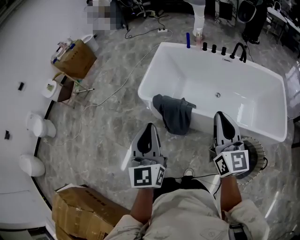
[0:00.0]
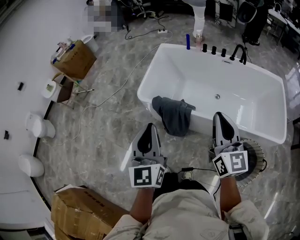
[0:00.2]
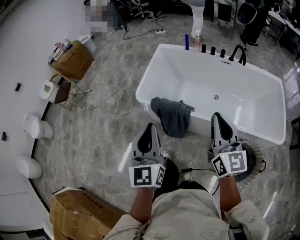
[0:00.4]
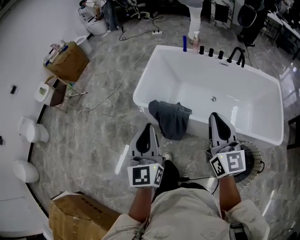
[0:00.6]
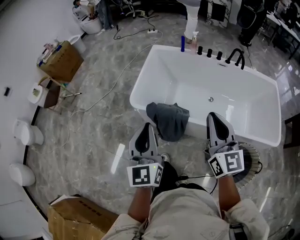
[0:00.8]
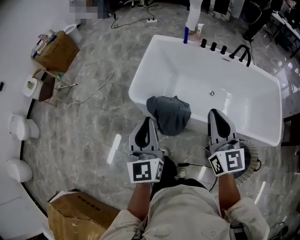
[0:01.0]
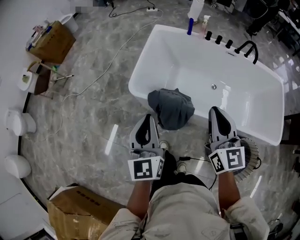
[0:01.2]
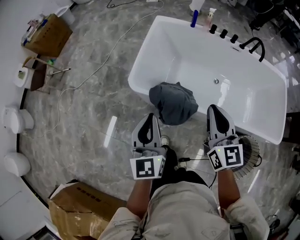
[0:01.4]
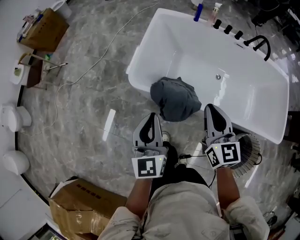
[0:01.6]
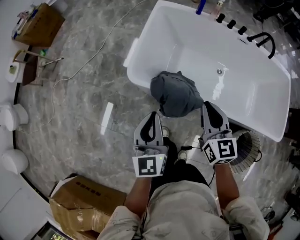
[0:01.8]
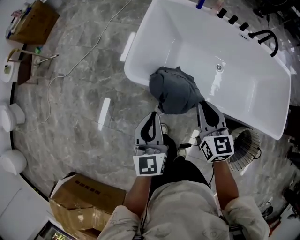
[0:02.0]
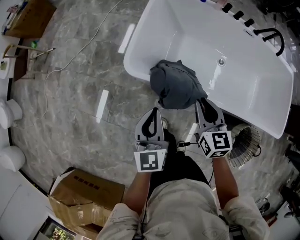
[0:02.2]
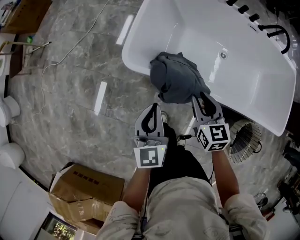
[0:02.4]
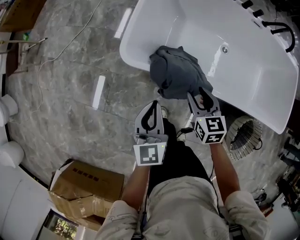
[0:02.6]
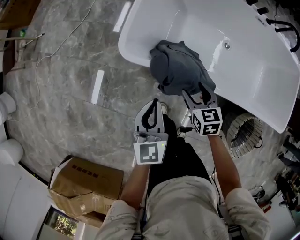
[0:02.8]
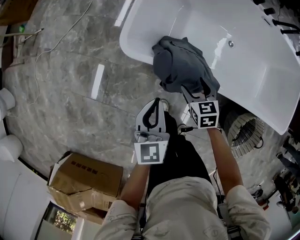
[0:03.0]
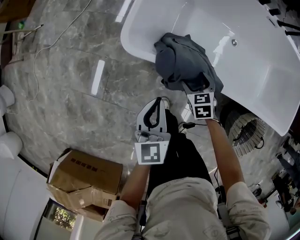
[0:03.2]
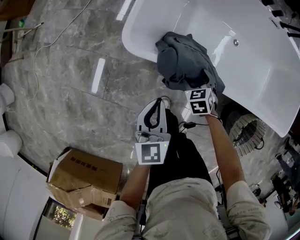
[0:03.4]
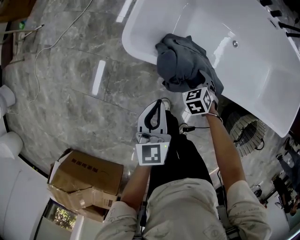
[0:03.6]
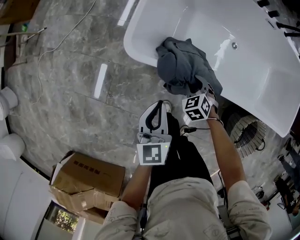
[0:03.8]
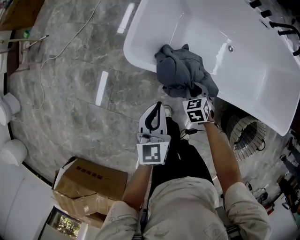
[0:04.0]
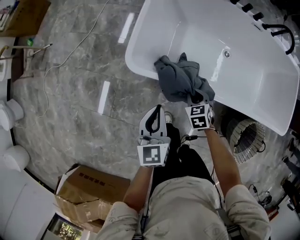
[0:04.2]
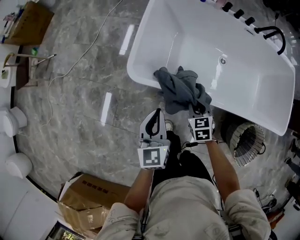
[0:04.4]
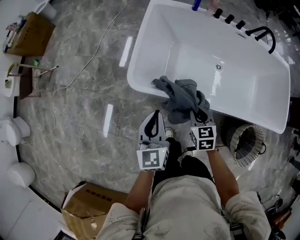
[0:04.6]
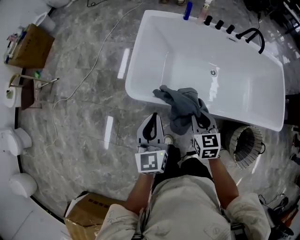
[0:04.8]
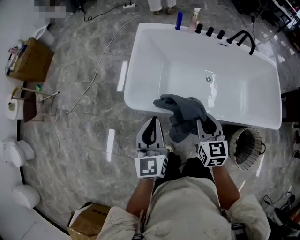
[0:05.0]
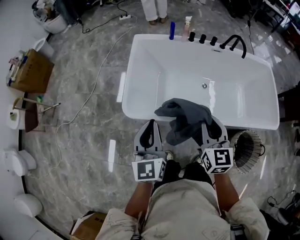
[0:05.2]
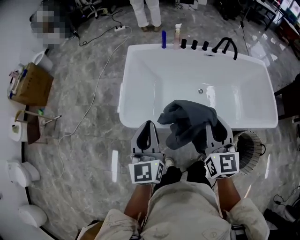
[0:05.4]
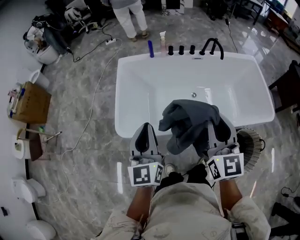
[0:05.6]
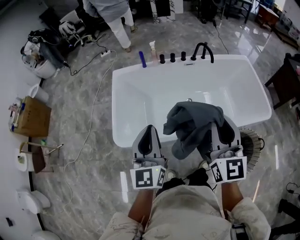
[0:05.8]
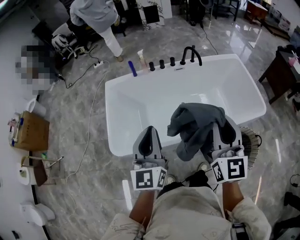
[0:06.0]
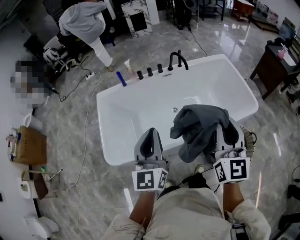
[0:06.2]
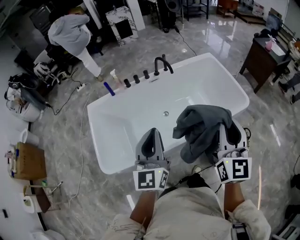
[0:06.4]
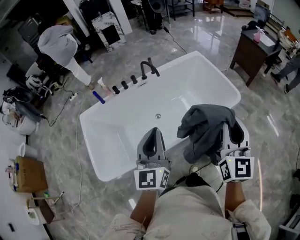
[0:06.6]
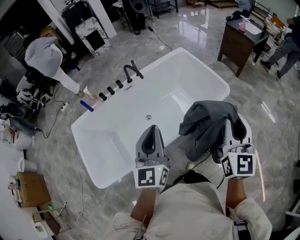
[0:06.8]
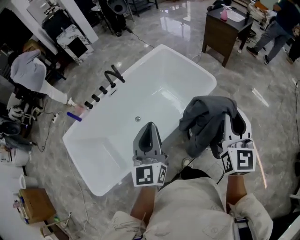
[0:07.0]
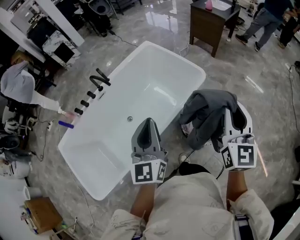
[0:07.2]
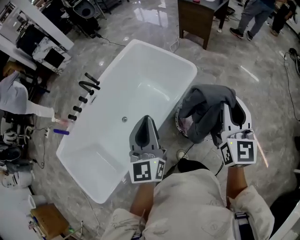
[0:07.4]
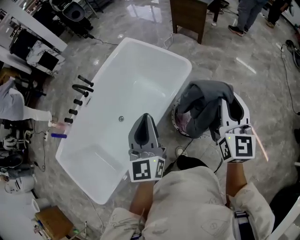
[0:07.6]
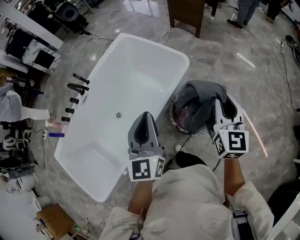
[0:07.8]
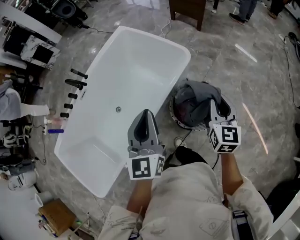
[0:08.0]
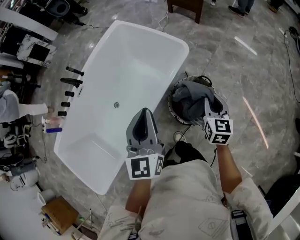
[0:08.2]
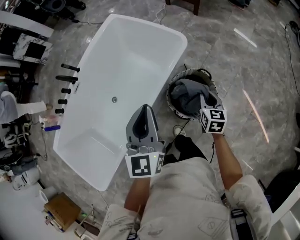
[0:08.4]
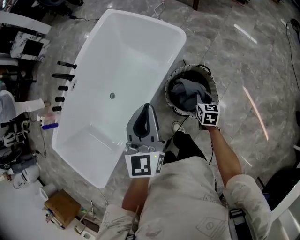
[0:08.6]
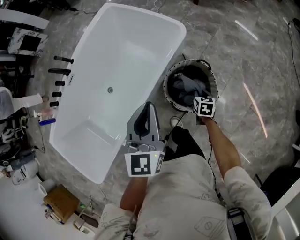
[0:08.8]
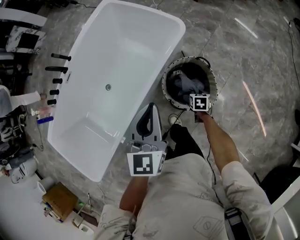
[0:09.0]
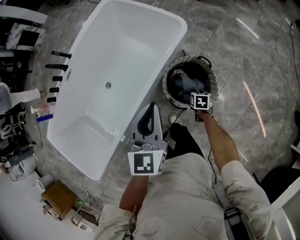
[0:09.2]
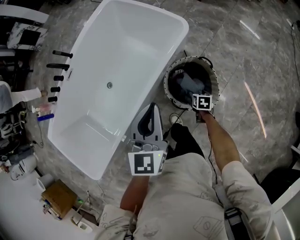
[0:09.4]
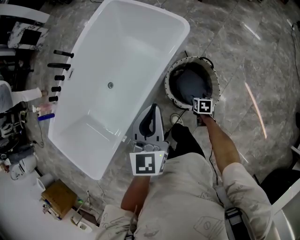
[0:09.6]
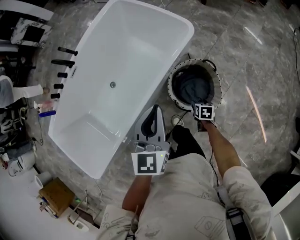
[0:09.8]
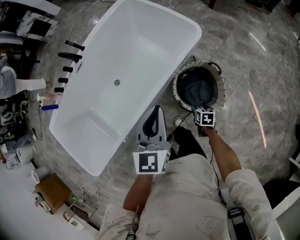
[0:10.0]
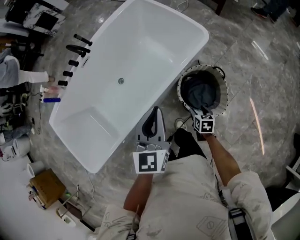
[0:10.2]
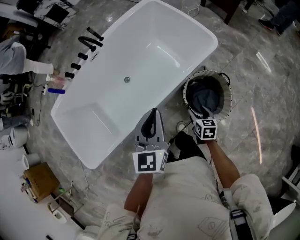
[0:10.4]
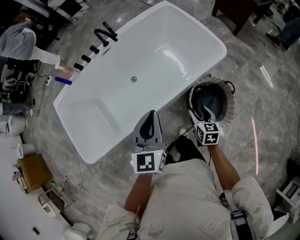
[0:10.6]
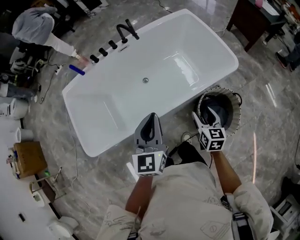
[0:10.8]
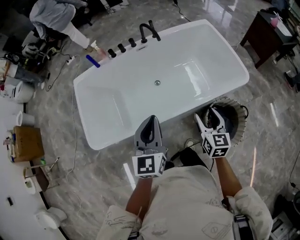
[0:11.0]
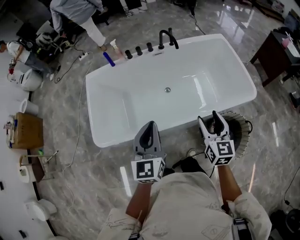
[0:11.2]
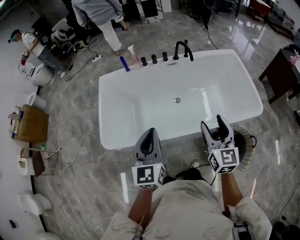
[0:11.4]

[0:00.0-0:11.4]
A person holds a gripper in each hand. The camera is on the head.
0:00.0 to 0:01.4: The left gripper shifts about 25 cm forward, downward and to the left, while the right gripper shifts roughly 25 cm forward, to the left and downward.
0:01.4 to 0:02.8: Both grippers travel together downward, roughly 30 cm. The right gripper angles its fingers downward, by about 40 degrees, and opens.
0:02.8 to 0:04.2: The right gripper closes up.
0:04.2 to 0:05.6: The right gripper goes roughly 50 cm upward, and tips its fingers upward by roughly 60 degrees; the left gripper is displaced upward and to the right by some 30 cm, and rotates about 30 degrees.
0:05.6 to 0:07.2: The pair of grippers is taken roughly 60 cm. The left gripper rotates some 50 degrees, while the right gripper changes its angle by some 50 degrees.
0:07.2 to 0:08.6: The right gripper is displaced downward by some 50 cm, and tilts its fingers roughly 50 degrees downward. Meanwhile the left gripper moves to the right, downward and forward, about 20 cm.
0:08.6 to 0:10.0: The left gripper moves some 5 cm. The right gripper shifts some 15 cm downward, backward and to the left, swivels some 20 degrees, and opens up.
0:10.0 to 0:11.4: The right gripper is displaced upward by some 50 cm, and points its fingers roughly 50 degrees further upward; the left gripper changes place by roughly 40 cm, and rotates approximately 40 degrees.

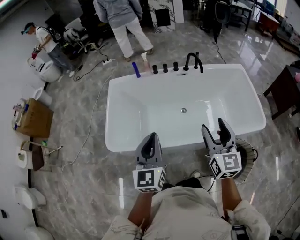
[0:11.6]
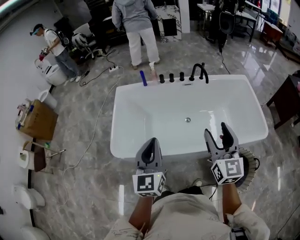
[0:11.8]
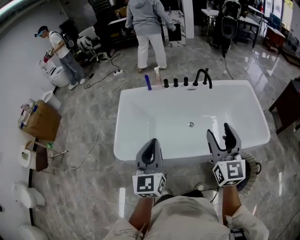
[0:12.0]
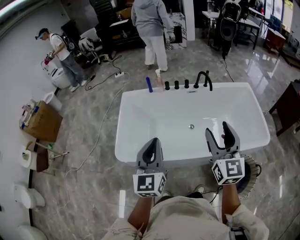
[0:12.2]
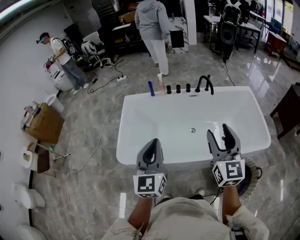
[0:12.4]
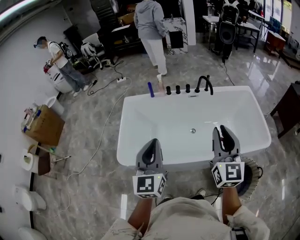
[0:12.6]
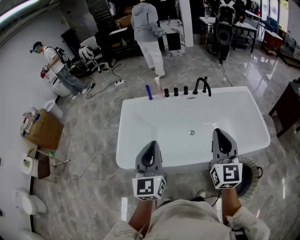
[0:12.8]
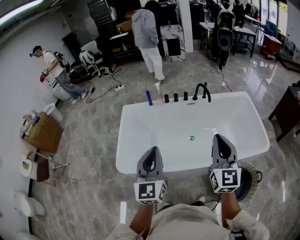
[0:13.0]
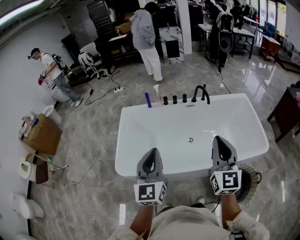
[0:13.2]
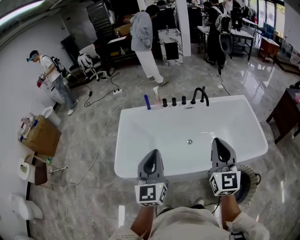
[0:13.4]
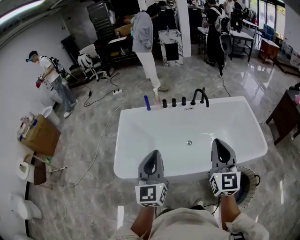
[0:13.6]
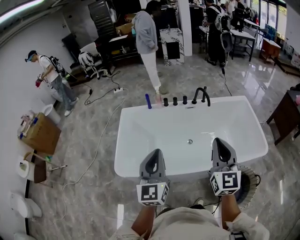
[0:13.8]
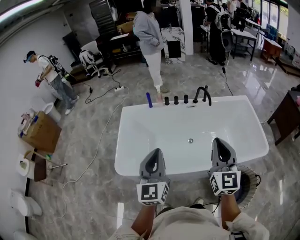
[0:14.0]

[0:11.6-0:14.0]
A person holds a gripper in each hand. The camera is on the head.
0:11.6 to 0:12.8: The grippers both shift upward by approximately 10 cm. The right gripper closes up.
0:12.8 to 0:14.0: The grippers move only a little.

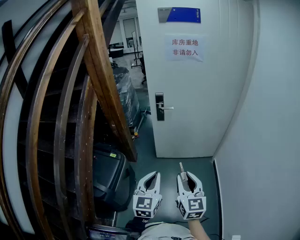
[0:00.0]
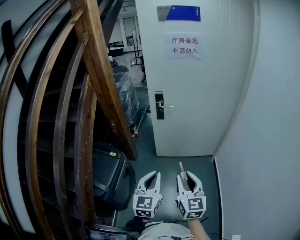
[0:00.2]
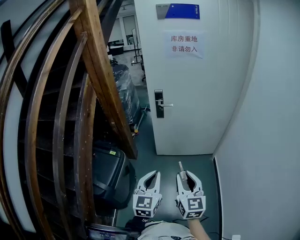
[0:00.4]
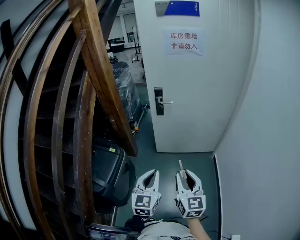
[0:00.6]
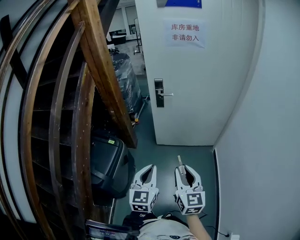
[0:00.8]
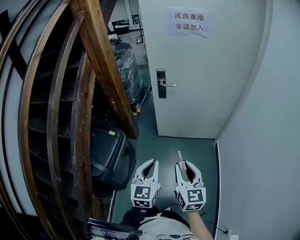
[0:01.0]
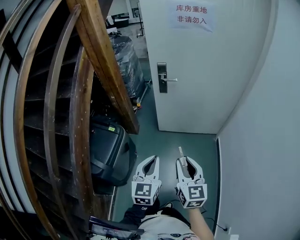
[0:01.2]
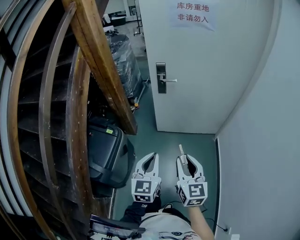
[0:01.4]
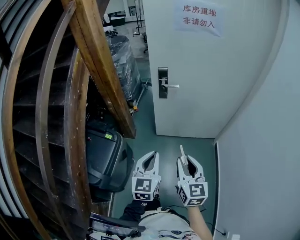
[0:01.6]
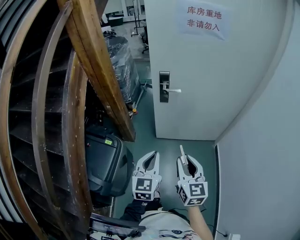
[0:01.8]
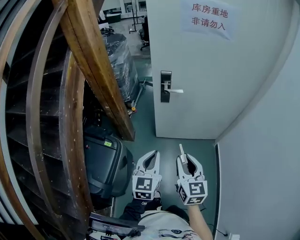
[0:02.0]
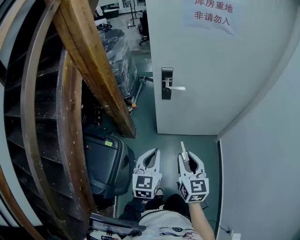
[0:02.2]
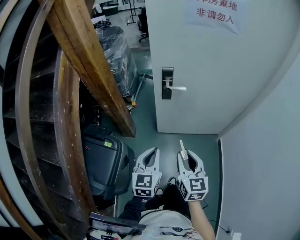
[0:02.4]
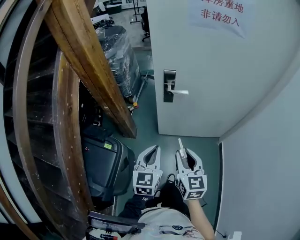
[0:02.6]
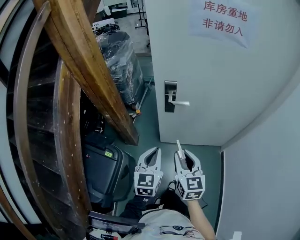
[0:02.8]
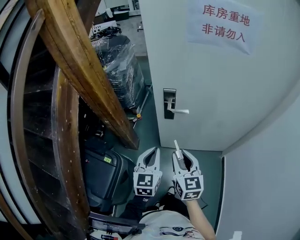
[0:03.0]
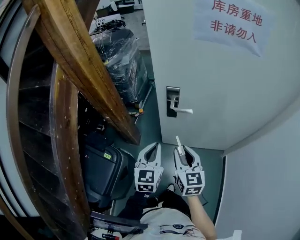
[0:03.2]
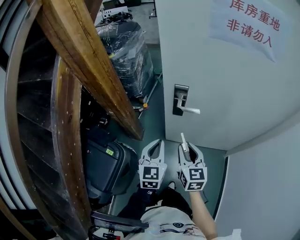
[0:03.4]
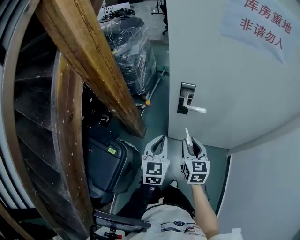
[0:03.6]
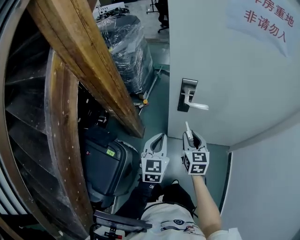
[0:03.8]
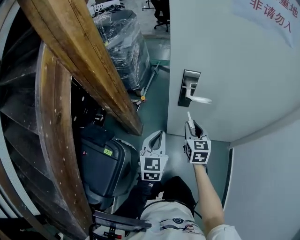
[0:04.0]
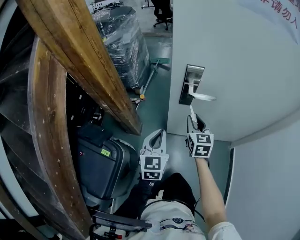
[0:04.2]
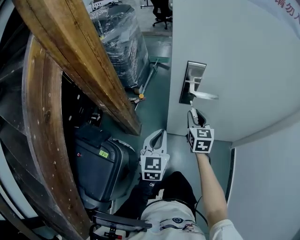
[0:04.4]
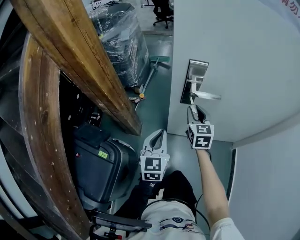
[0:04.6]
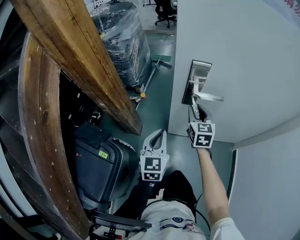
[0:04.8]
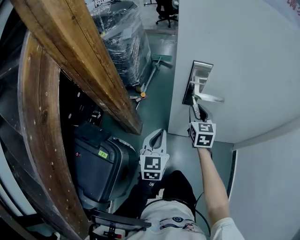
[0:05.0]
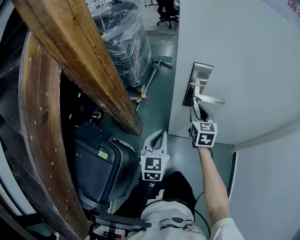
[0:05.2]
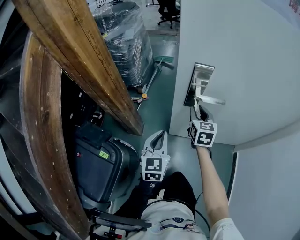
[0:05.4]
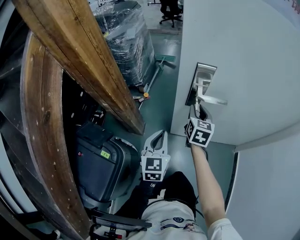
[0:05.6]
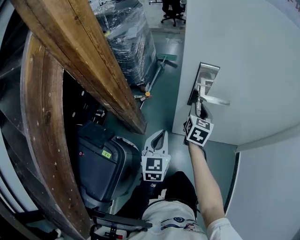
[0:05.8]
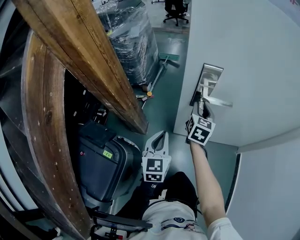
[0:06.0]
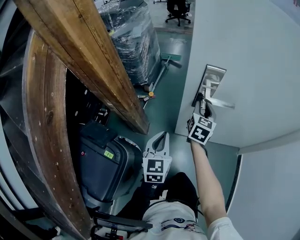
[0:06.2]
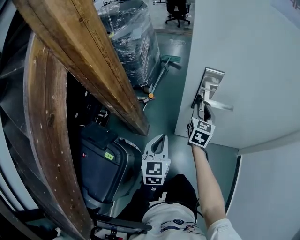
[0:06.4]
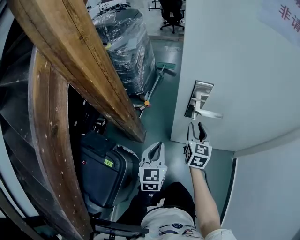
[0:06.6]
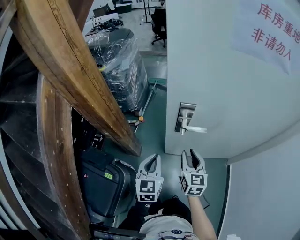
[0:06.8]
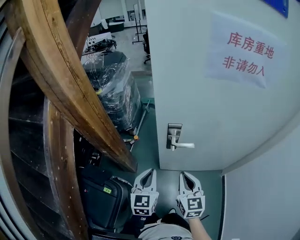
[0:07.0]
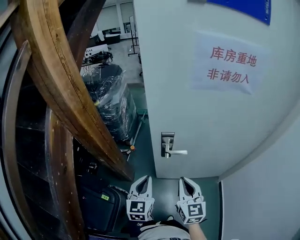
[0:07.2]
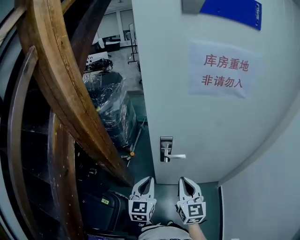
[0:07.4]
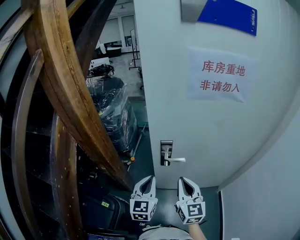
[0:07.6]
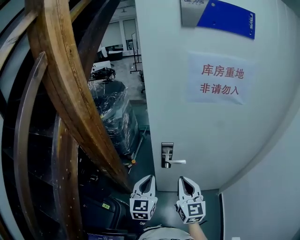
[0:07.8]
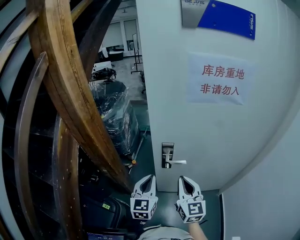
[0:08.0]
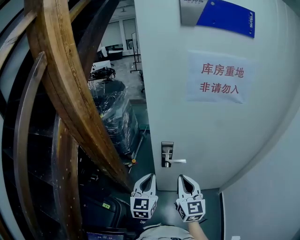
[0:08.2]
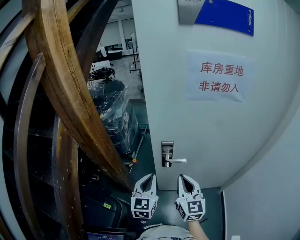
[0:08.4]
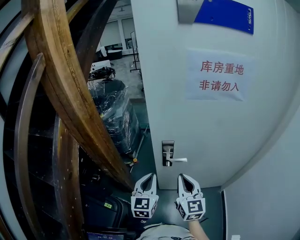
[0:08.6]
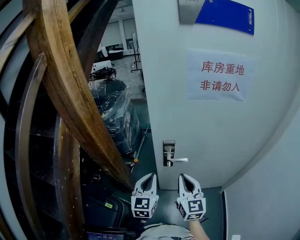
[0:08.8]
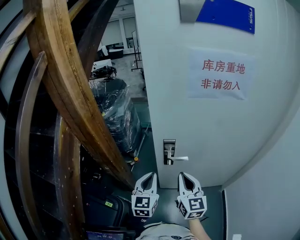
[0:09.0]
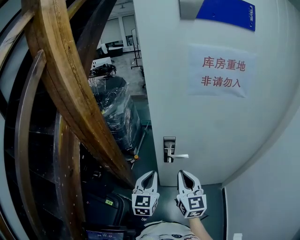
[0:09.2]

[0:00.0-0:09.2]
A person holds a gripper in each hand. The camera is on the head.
0:00.0 to 0:01.6: The grippers both shift forward by some 10 cm.
0:01.6 to 0:03.0: The grippers both shift forward by approximately 25 cm.
0:03.0 to 0:04.6: The right gripper travels forward and downward by approximately 30 cm; the left gripper shifts approximately 20 cm downward and forward.
0:04.6 to 0:06.2: The right gripper moves forward, some 5 cm.
0:06.2 to 0:07.6: The right gripper is displaced upward and backward by approximately 35 cm, turns by some 20 degrees, and closes its fingers; the left gripper goes some 25 cm upward.
0:07.6 to 0:09.2: The grippers move only a little.
